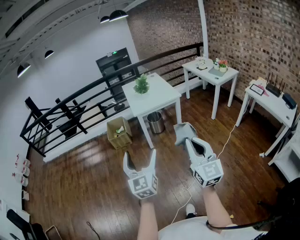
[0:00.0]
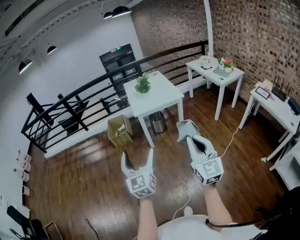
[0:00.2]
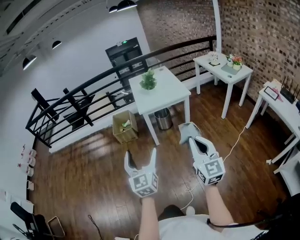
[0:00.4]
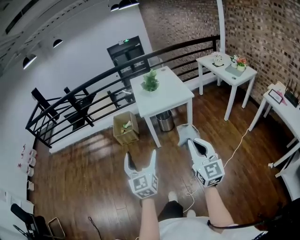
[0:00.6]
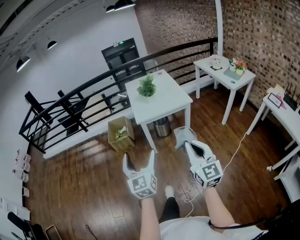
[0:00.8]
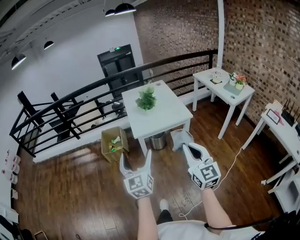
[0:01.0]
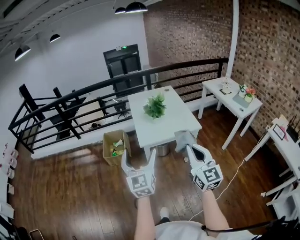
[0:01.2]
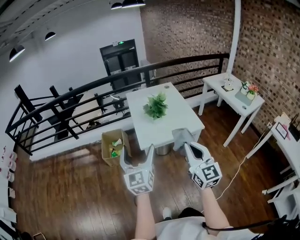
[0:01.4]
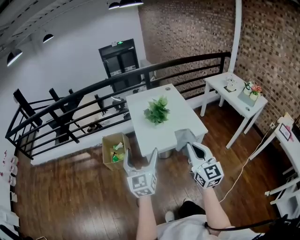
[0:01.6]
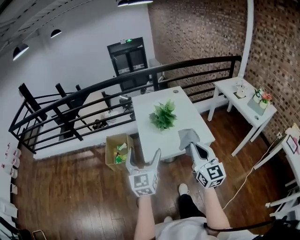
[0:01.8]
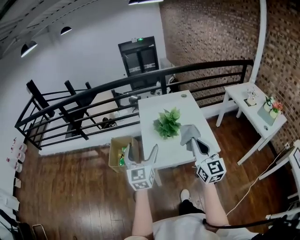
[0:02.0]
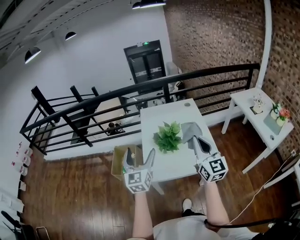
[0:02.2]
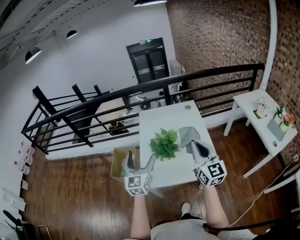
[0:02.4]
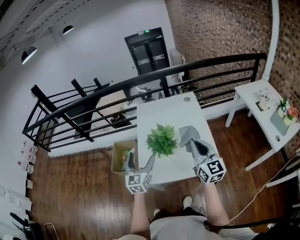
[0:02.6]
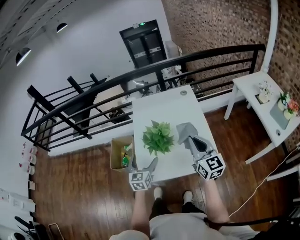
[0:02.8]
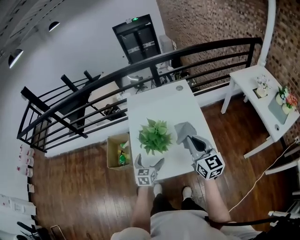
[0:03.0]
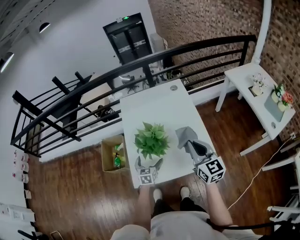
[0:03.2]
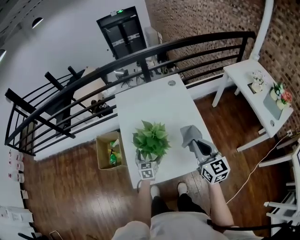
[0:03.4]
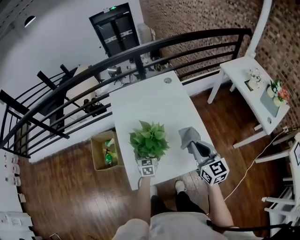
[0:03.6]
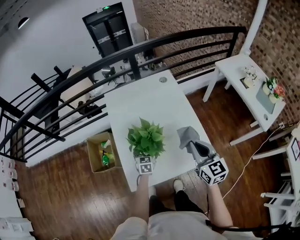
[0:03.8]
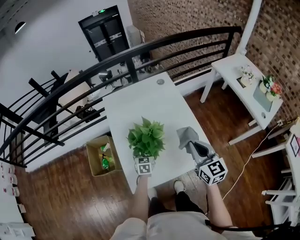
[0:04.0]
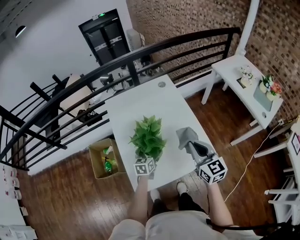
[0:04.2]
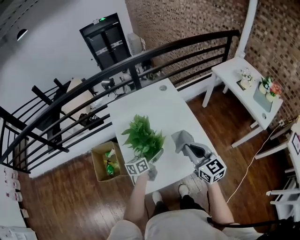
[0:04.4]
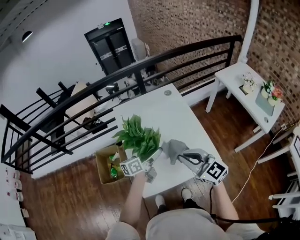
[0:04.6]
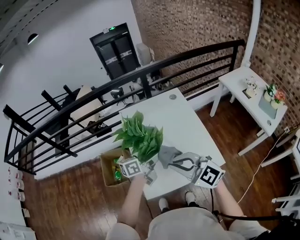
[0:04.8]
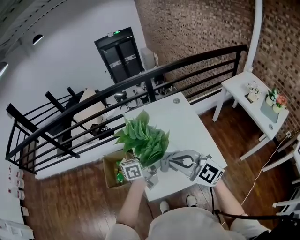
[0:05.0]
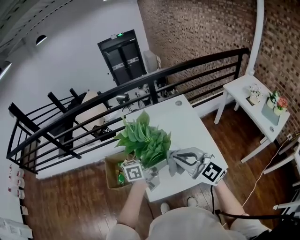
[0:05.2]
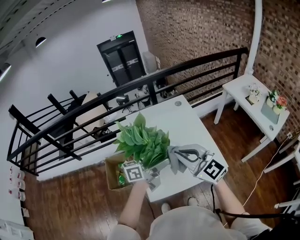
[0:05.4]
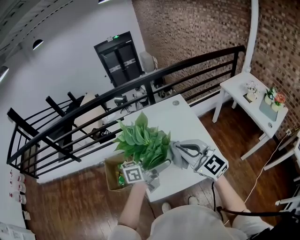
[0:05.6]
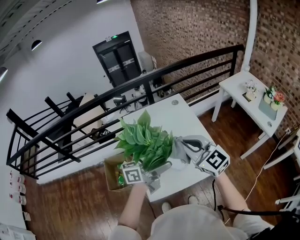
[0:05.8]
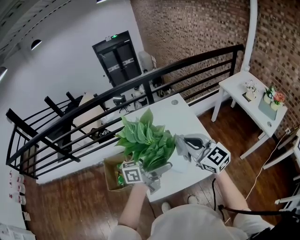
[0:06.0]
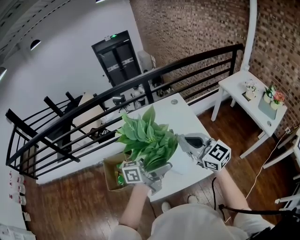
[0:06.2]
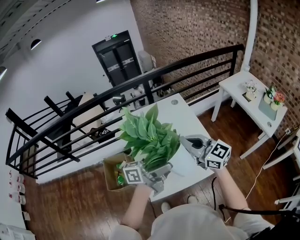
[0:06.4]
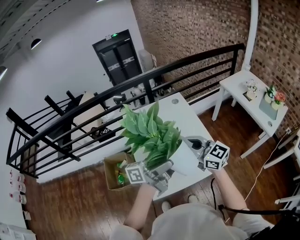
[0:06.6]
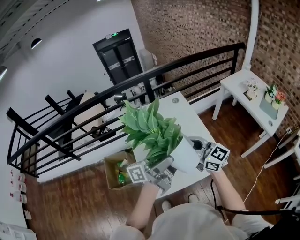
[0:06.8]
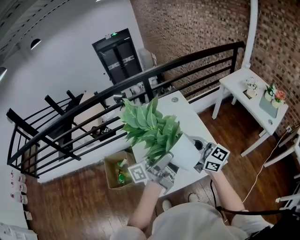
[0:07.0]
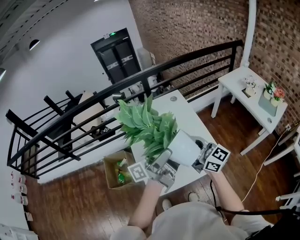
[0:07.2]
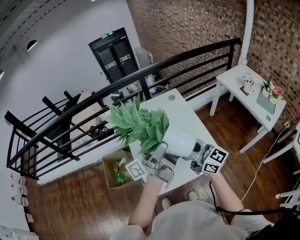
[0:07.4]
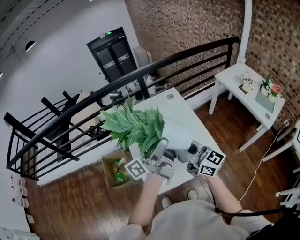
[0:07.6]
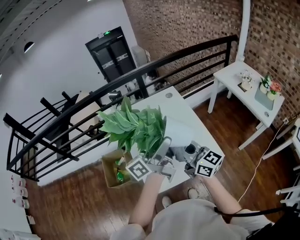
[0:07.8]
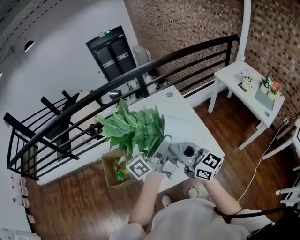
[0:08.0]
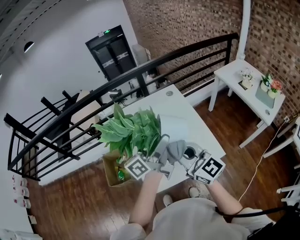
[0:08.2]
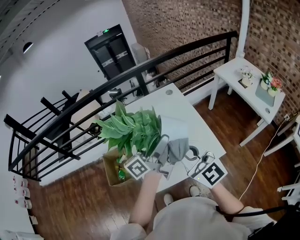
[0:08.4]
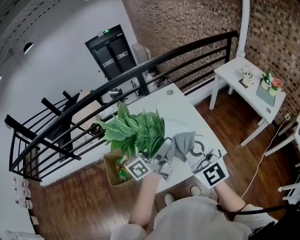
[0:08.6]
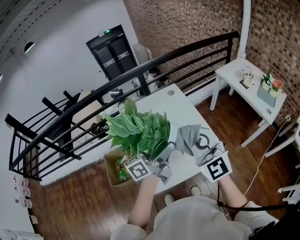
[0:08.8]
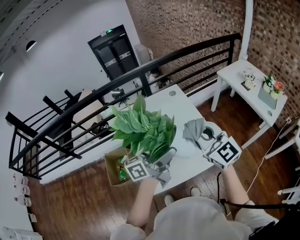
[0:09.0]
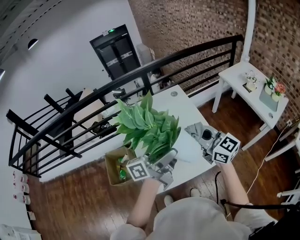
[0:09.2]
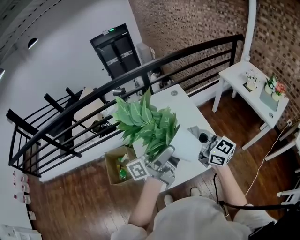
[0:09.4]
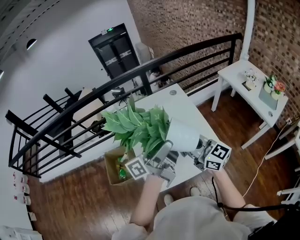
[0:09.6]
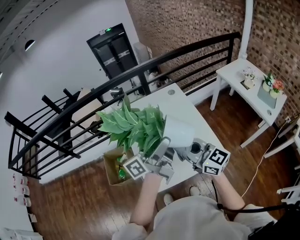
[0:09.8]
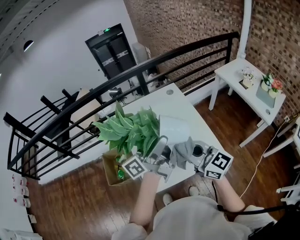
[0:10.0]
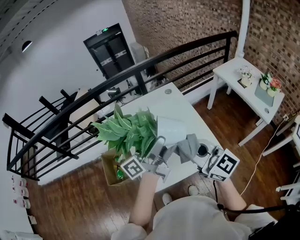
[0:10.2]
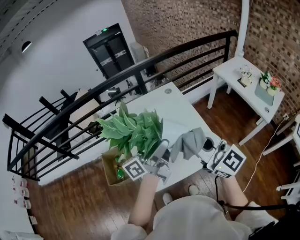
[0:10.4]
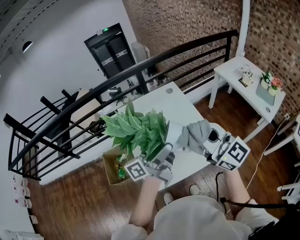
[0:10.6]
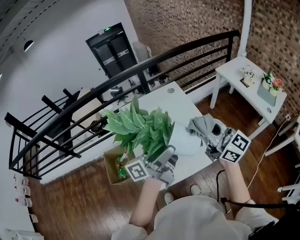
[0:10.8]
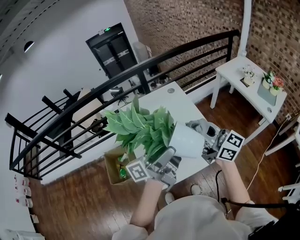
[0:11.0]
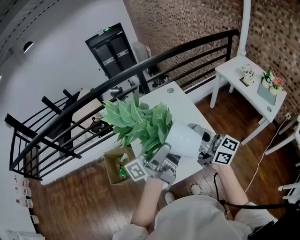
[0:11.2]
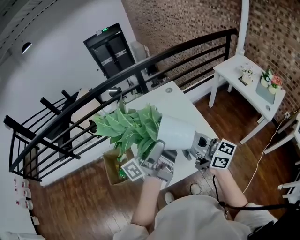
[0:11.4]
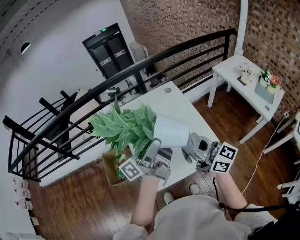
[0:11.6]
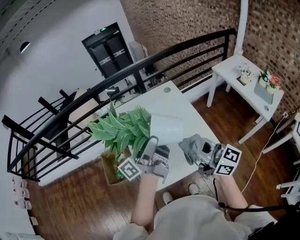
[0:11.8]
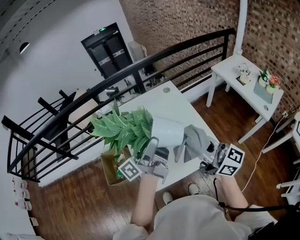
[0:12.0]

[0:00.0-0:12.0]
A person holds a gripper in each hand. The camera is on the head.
0:00.0 to 0:01.6: The two grippers travel together, forward, some 60 cm.
0:01.6 to 0:03.0: The right gripper is displaced forward and to the right by about 40 cm. The left gripper goes some 40 cm forward, downward and to the right, and angles its fingers downward, by roughly 30 degrees.
0:03.0 to 0:04.4: The right gripper ends up approximately 5 cm from where it was, while the left gripper moves forward, approximately 10 cm, and turns by roughly 40 degrees.
0:04.4 to 0:06.0: The right gripper is displaced upward and to the left by approximately 15 cm, and swivels some 20 degrees. Meanwhile the left gripper travels upward and backward by roughly 30 cm, and tips its fingers upward by about 30 degrees.
0:06.0 to 0:07.6: The right gripper rotates about 30 degrees. The left gripper goes approximately 5 cm upward, and swivels approximately 30 degrees.
0:07.6 to 0:09.0: The right gripper goes about 5 cm upward, and changes its angle by roughly 30 degrees. The left gripper changes its angle by roughly 20 degrees.
0:09.0 to 0:10.4: The right gripper is displaced backward by about 5 cm, and travels downward and back again, some 5 cm each way.
0:10.4 to 0:12.0: The right gripper swivels roughly 20 degrees.

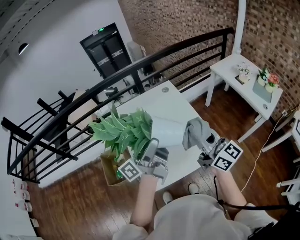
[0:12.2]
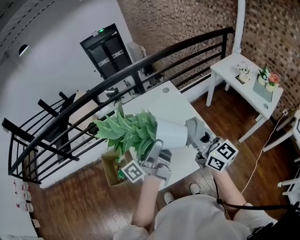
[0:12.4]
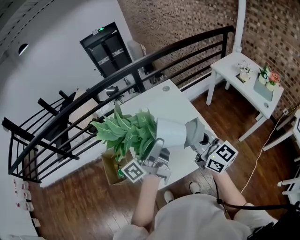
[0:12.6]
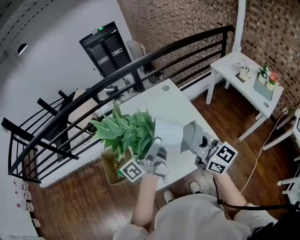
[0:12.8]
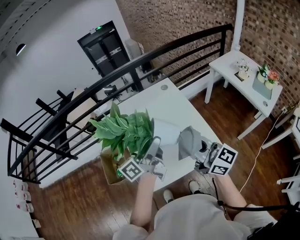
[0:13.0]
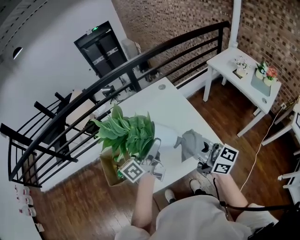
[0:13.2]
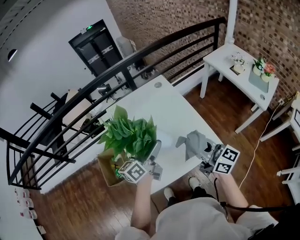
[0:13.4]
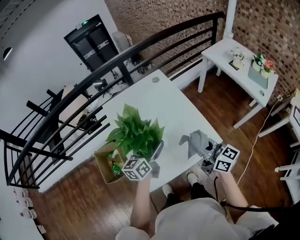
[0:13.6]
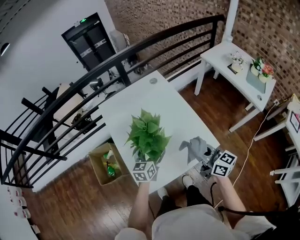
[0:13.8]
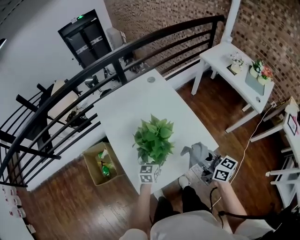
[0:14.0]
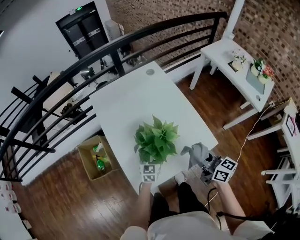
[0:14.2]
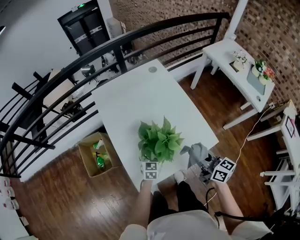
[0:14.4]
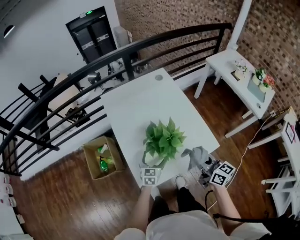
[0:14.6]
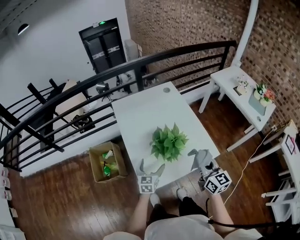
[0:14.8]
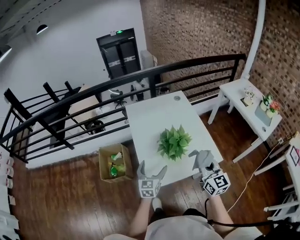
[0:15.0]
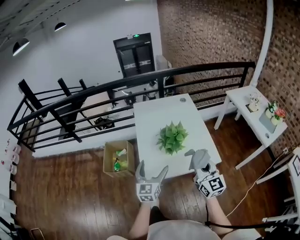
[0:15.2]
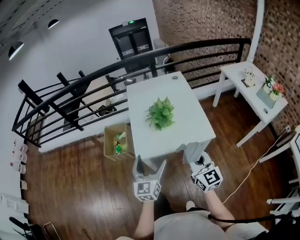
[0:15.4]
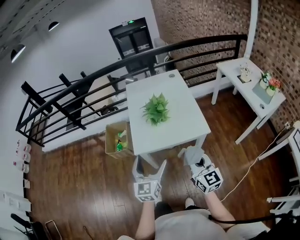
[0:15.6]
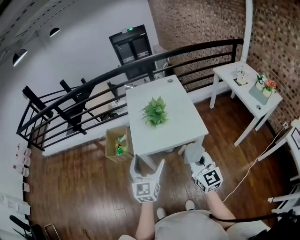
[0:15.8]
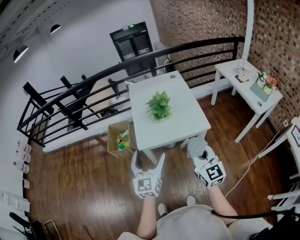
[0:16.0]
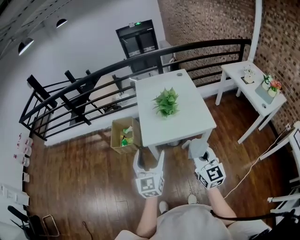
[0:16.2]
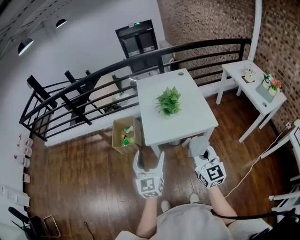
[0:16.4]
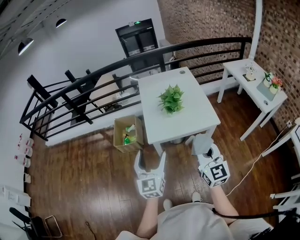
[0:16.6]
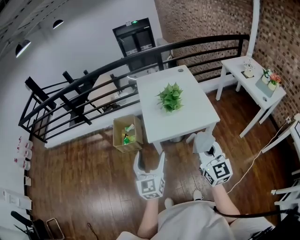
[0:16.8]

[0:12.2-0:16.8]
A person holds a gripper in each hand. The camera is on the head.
0:12.2 to 0:13.8: The left gripper heads downward, covering roughly 30 cm, and points its fingers about 50 degrees further downward. The right gripper moves downward, about 15 cm.
0:13.8 to 0:15.2: The right gripper shifts about 15 cm backward and upward, and swivels about 30 degrees; the left gripper shifts roughly 25 cm backward and upward, and swivels approximately 30 degrees.
0:15.2 to 0:16.8: Both grippers move backward, some 20 cm.

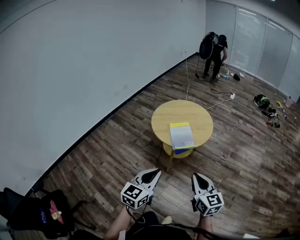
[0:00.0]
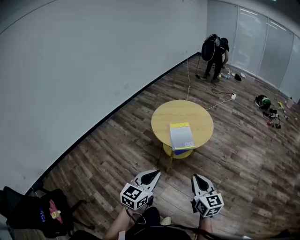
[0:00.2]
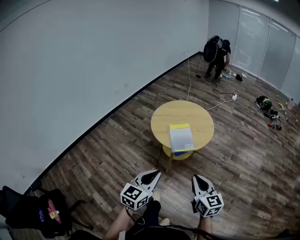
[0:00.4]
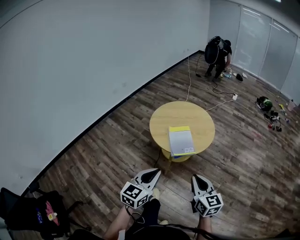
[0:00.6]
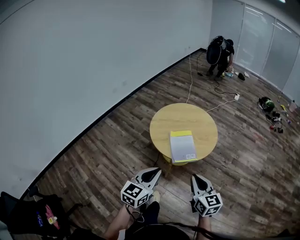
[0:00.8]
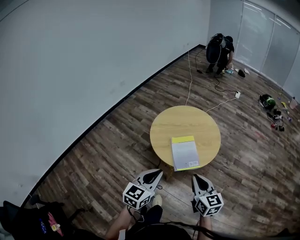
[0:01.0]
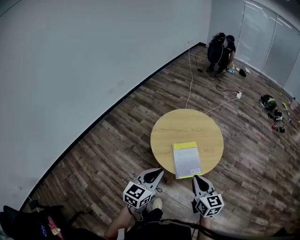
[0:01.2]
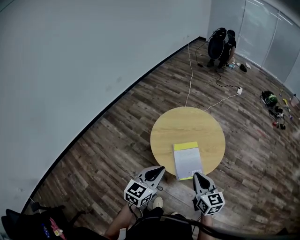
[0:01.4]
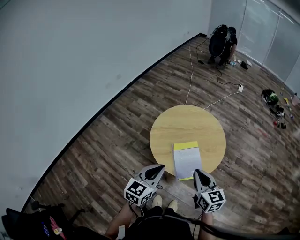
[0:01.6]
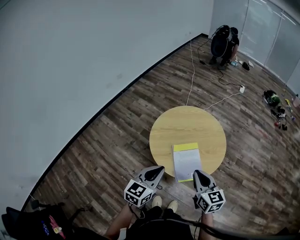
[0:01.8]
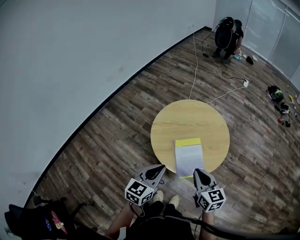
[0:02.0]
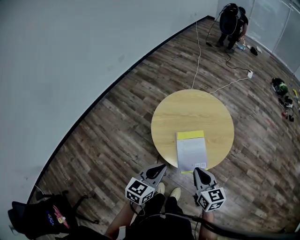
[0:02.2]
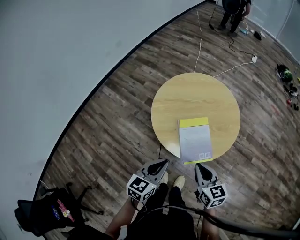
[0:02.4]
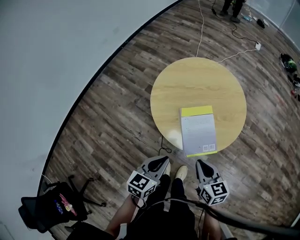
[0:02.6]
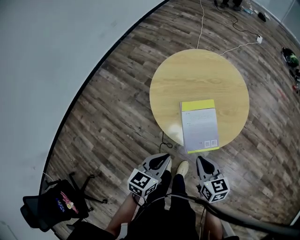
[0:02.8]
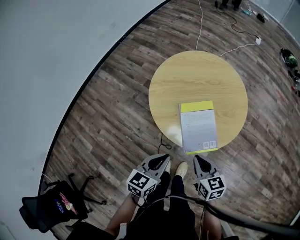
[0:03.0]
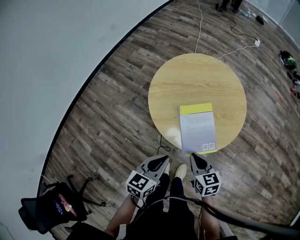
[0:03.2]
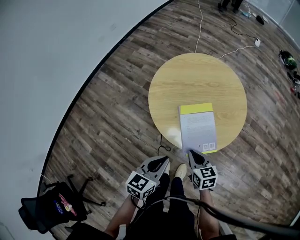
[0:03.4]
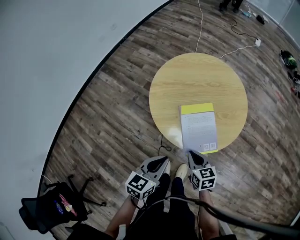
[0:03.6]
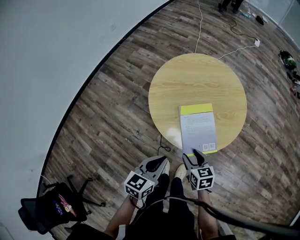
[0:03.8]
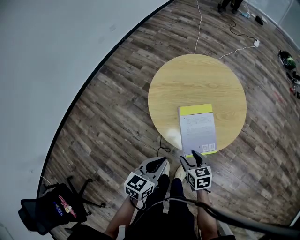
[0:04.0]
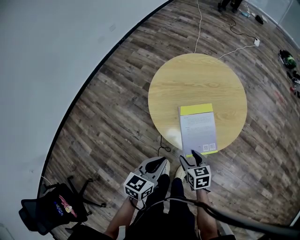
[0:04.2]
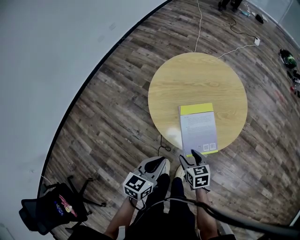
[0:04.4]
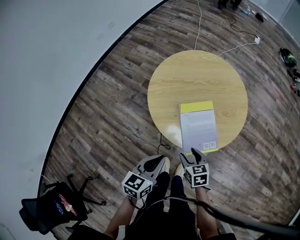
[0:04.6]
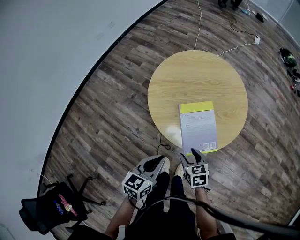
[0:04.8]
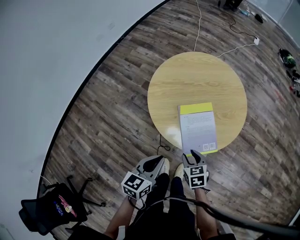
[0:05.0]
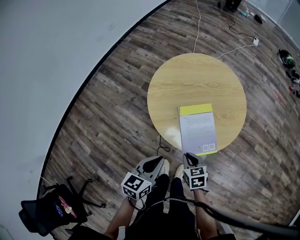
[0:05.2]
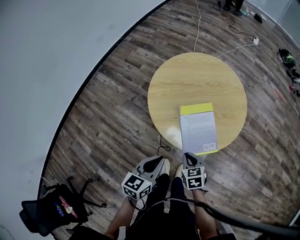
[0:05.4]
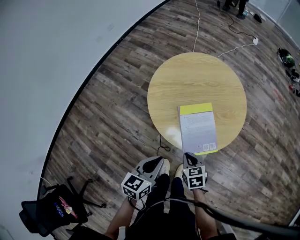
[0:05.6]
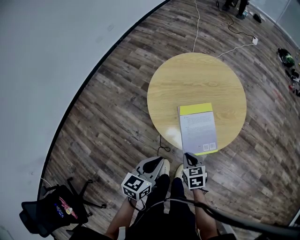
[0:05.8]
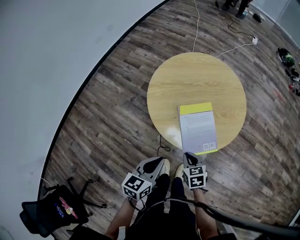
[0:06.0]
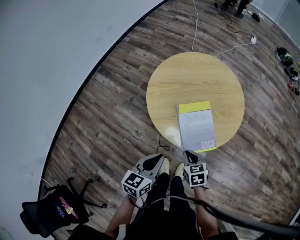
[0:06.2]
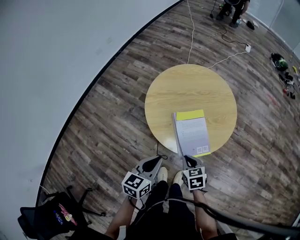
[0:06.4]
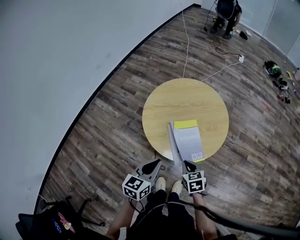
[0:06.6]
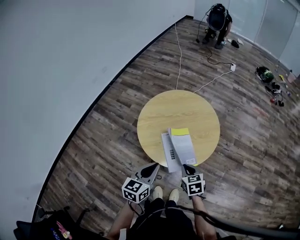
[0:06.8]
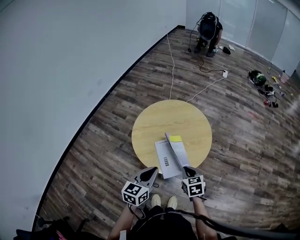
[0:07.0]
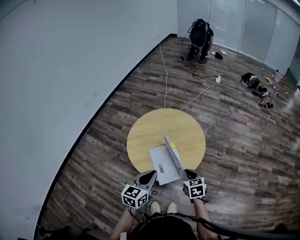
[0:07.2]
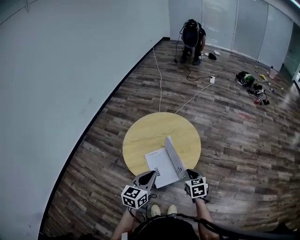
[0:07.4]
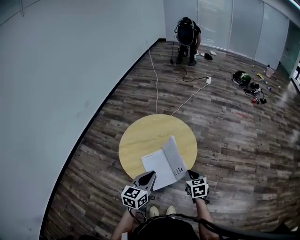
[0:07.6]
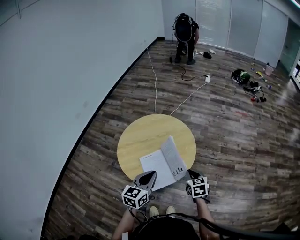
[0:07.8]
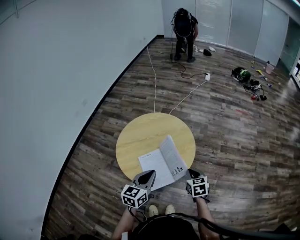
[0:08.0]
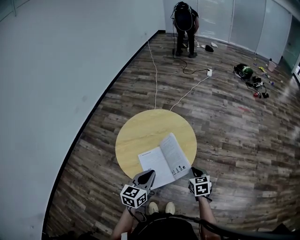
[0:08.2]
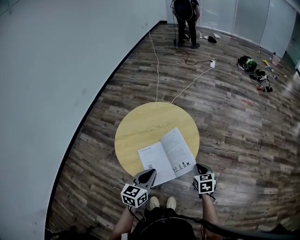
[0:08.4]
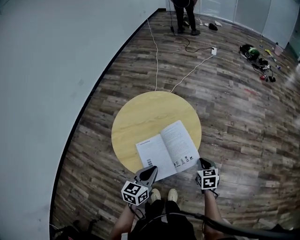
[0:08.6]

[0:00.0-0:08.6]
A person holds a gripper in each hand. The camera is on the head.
0:00.0 to 0:01.4: The grippers both shift forward by roughly 30 cm.
0:01.4 to 0:02.8: Both grippers travel together downward, roughly 15 cm. The left gripper rotates approximately 20 degrees.
0:02.8 to 0:04.4: The right gripper travels downward by roughly 10 cm, and opens its fingers.
0:04.4 to 0:05.8: The right gripper closes its fingers.
0:05.8 to 0:07.2: The left gripper travels upward, to the right and forward by some 15 cm. Meanwhile the right gripper moves upward and to the right, approximately 20 cm.
0:07.2 to 0:08.6: The left gripper moves downward and to the right, about 10 cm, while the right gripper shifts roughly 15 cm to the right, downward and forward.
